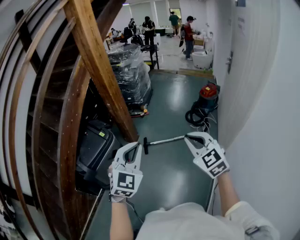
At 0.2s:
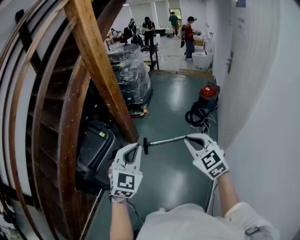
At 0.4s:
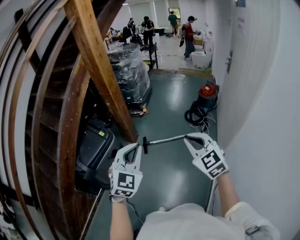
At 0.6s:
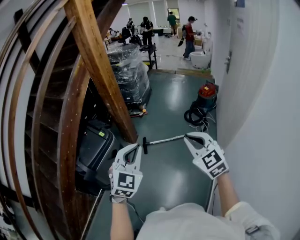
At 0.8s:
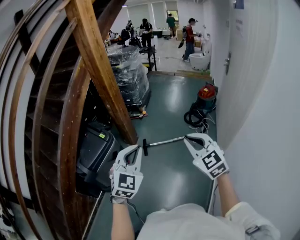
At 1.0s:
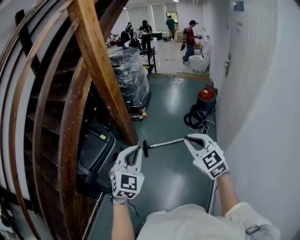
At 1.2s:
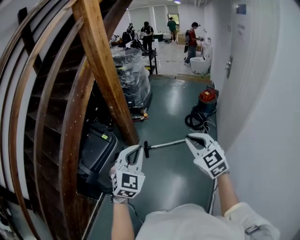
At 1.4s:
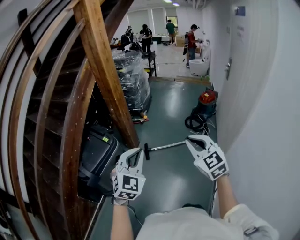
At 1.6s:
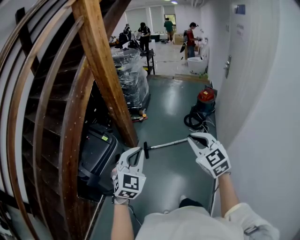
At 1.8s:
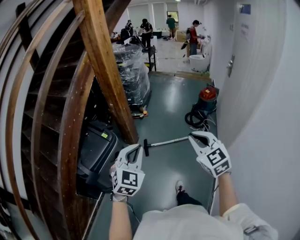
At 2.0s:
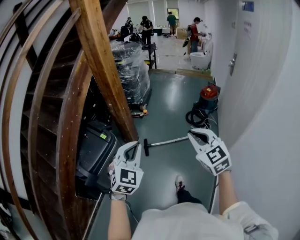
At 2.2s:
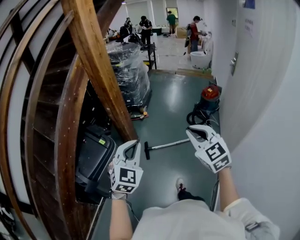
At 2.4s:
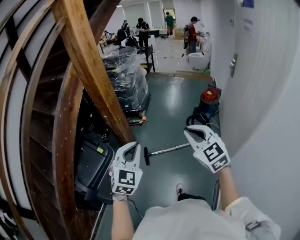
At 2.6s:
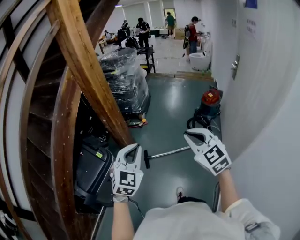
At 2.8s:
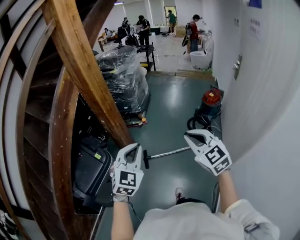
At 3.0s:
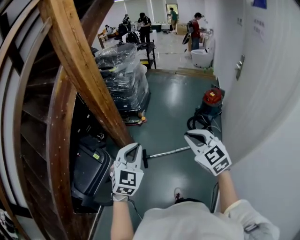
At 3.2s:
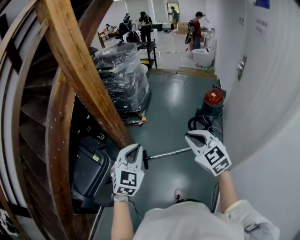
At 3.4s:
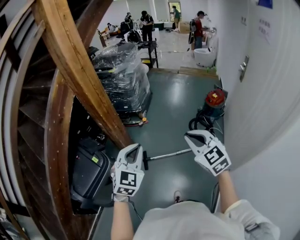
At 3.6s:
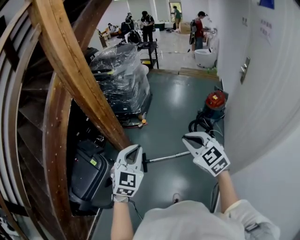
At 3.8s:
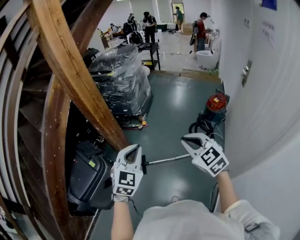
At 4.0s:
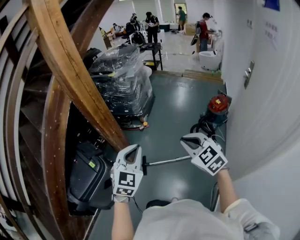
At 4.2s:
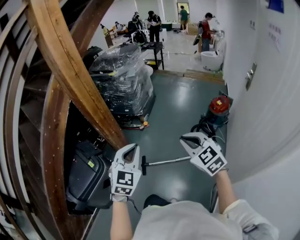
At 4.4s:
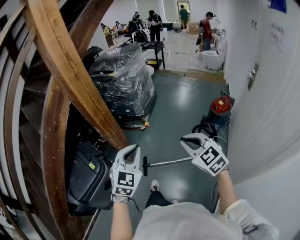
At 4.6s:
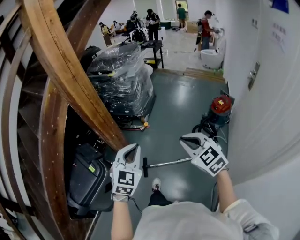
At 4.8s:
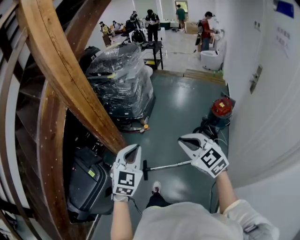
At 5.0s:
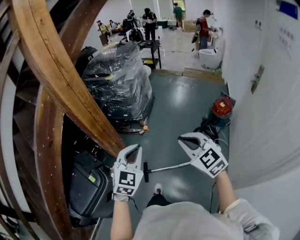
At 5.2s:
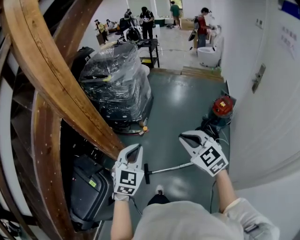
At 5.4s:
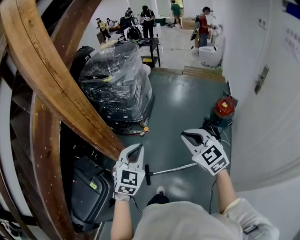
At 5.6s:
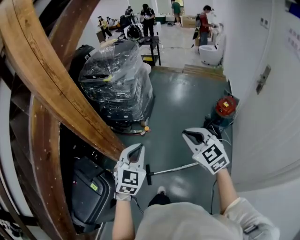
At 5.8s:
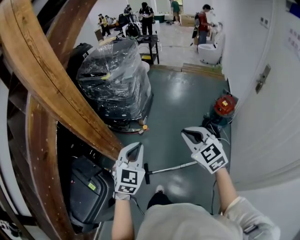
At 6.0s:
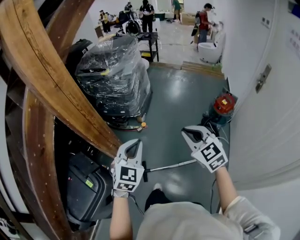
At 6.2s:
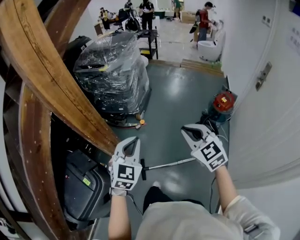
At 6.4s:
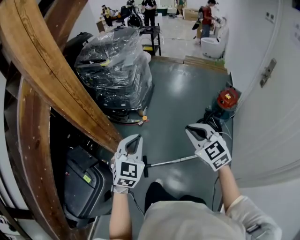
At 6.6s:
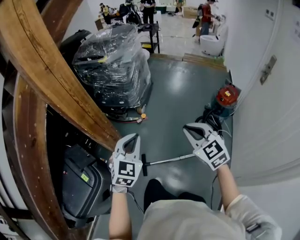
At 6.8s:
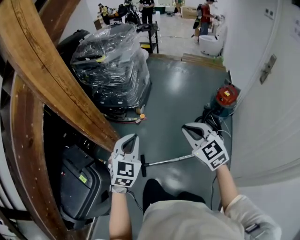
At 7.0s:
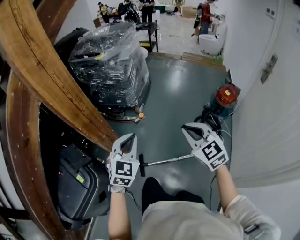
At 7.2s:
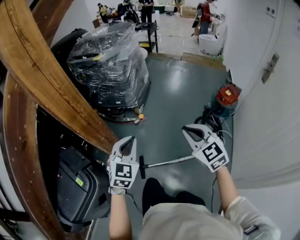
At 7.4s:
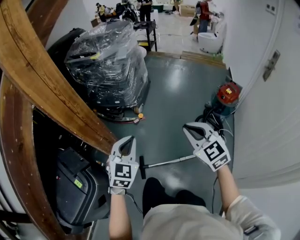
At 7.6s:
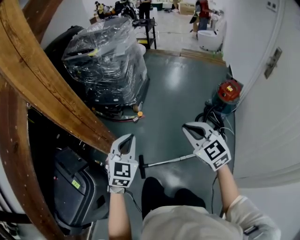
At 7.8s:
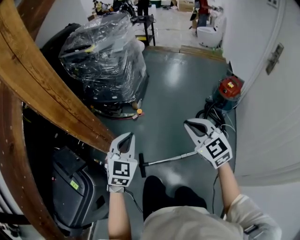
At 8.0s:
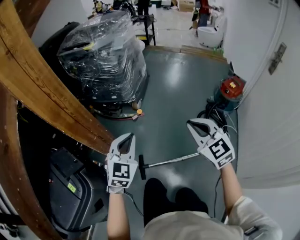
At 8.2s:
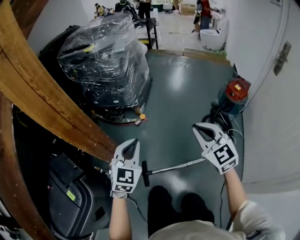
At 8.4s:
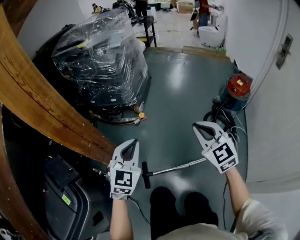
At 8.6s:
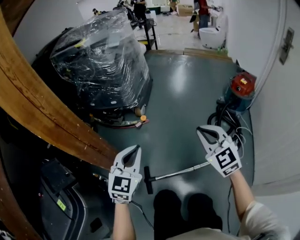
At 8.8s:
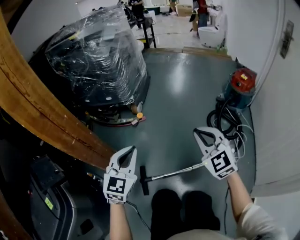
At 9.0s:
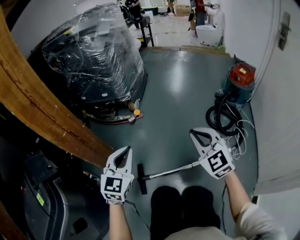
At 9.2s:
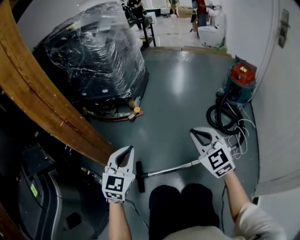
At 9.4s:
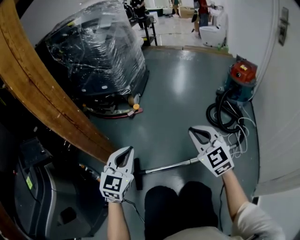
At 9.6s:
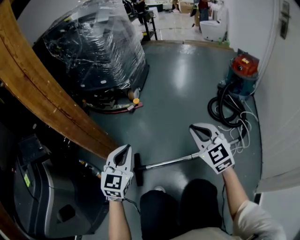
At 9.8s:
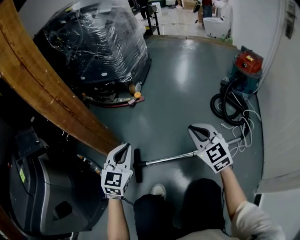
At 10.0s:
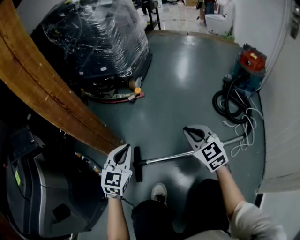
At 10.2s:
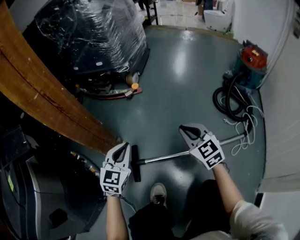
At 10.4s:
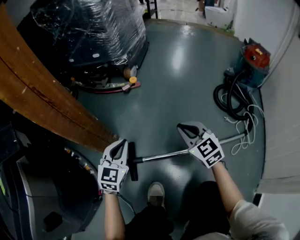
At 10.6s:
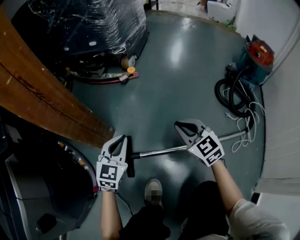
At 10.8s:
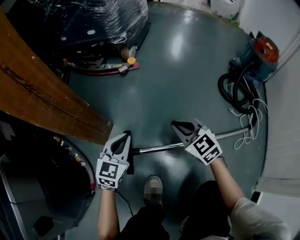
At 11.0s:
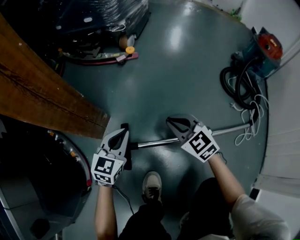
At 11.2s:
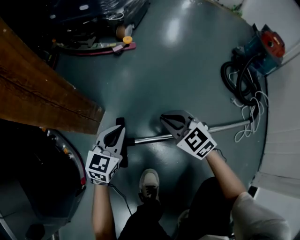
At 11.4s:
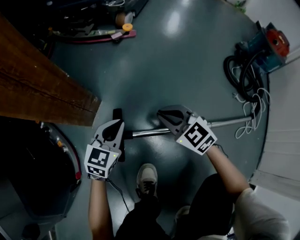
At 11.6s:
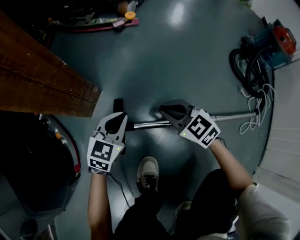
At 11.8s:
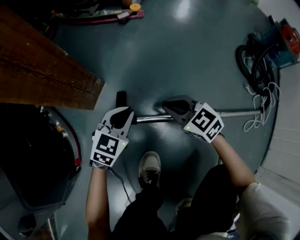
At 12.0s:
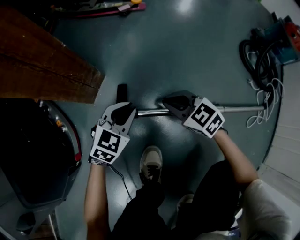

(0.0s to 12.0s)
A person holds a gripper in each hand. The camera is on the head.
0.0s - 1.6s: Both grippers move to the left, approximately 5 cm.
1.6s - 3.0s: The grippers both shift forward by about 25 cm.
3.0s - 4.4s: The grippers both shift forward and to the right by about 15 cm.
4.4s - 6.0s: Both grippers move forward, some 20 cm.
6.0s - 7.6s: The two grippers go some 15 cm downward.
7.6s - 9.0s: Both grippers move downward, some 30 cm.
9.0s - 10.4s: The grippers both shift downward by roughly 25 cm.
10.4s - 12.0s: The right gripper moves downward and to the left, some 25 cm, and turns by about 30 degrees, while the left gripper moves downward, roughly 20 cm, and turns by some 20 degrees.

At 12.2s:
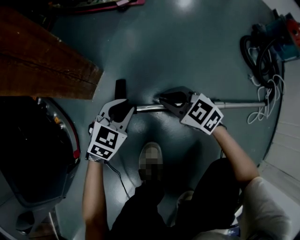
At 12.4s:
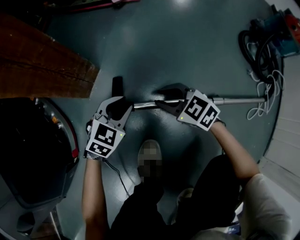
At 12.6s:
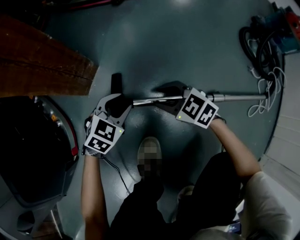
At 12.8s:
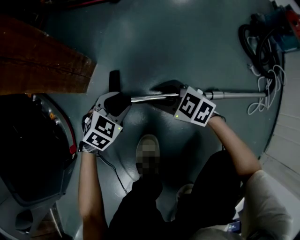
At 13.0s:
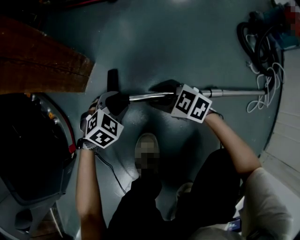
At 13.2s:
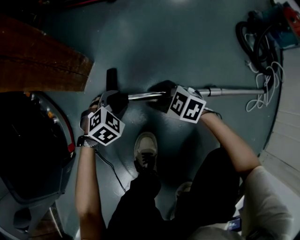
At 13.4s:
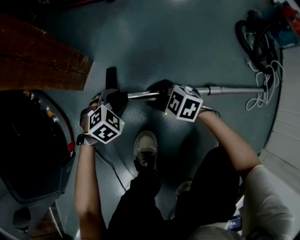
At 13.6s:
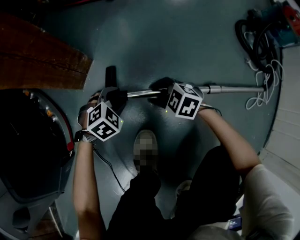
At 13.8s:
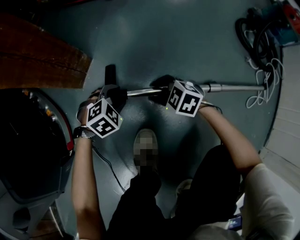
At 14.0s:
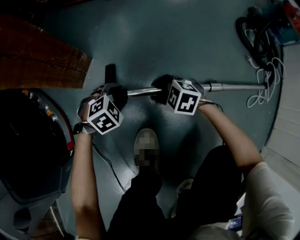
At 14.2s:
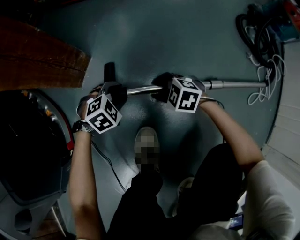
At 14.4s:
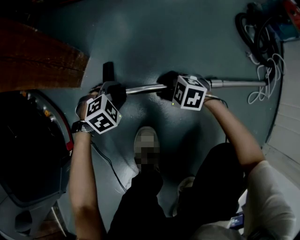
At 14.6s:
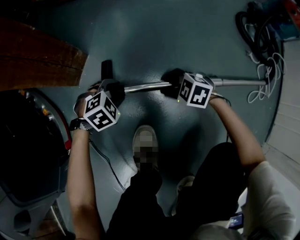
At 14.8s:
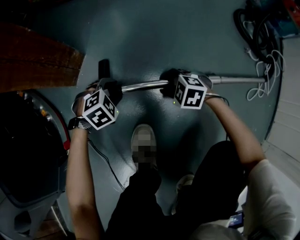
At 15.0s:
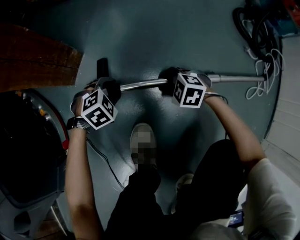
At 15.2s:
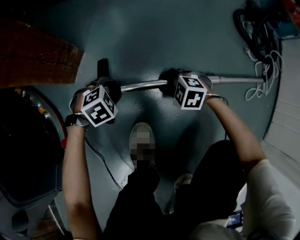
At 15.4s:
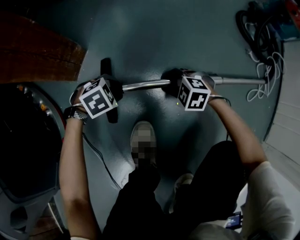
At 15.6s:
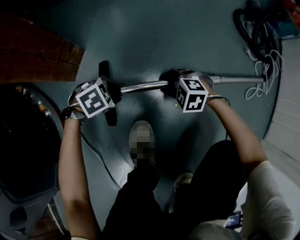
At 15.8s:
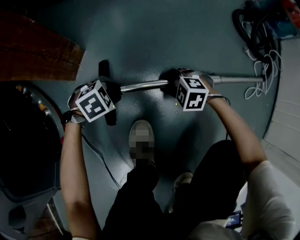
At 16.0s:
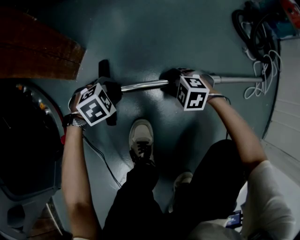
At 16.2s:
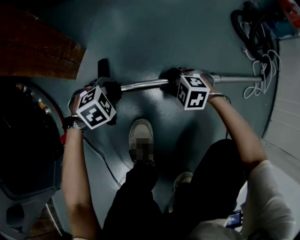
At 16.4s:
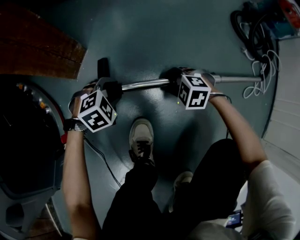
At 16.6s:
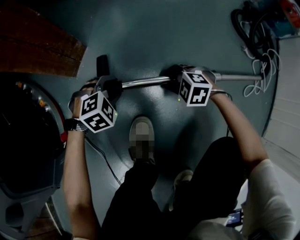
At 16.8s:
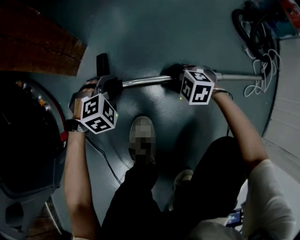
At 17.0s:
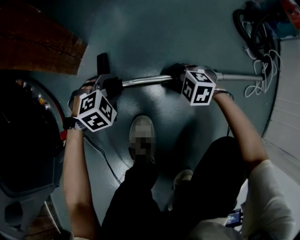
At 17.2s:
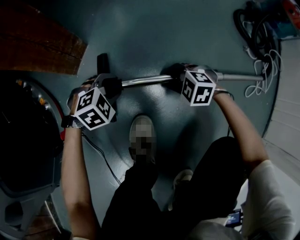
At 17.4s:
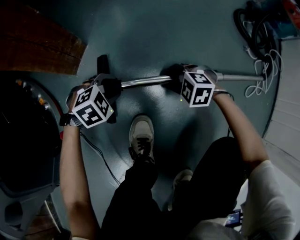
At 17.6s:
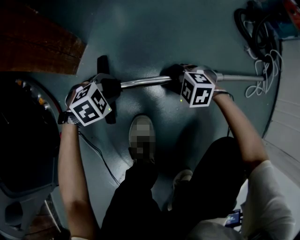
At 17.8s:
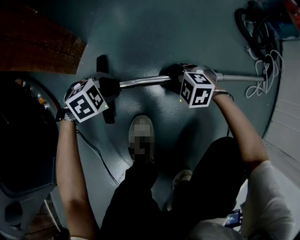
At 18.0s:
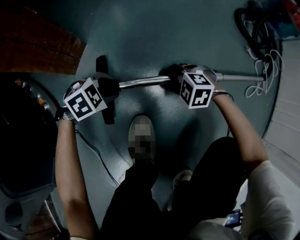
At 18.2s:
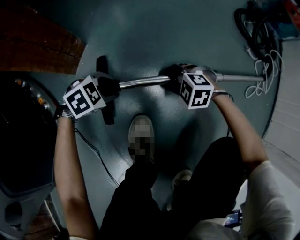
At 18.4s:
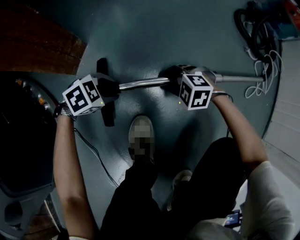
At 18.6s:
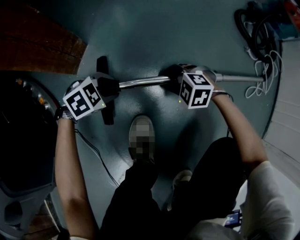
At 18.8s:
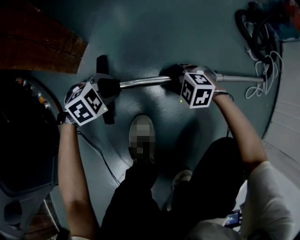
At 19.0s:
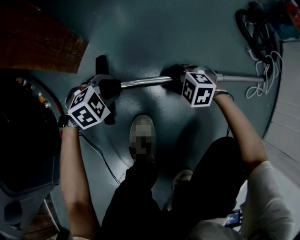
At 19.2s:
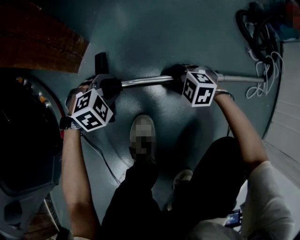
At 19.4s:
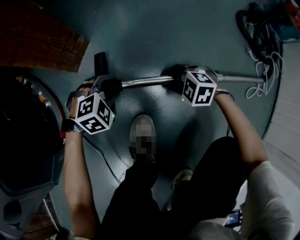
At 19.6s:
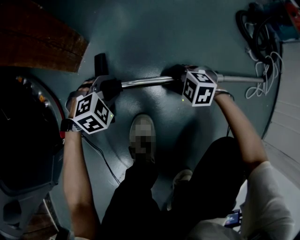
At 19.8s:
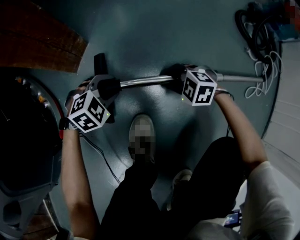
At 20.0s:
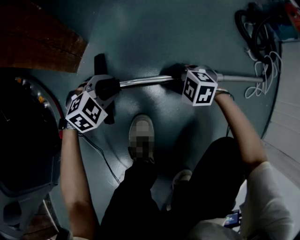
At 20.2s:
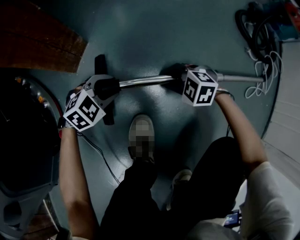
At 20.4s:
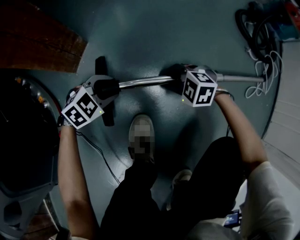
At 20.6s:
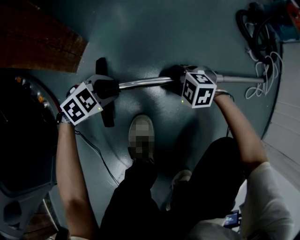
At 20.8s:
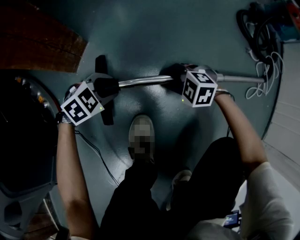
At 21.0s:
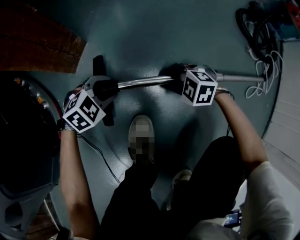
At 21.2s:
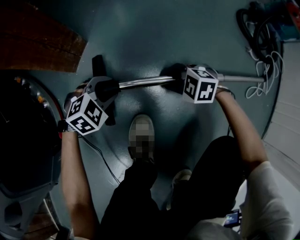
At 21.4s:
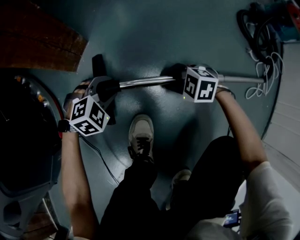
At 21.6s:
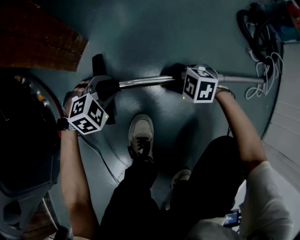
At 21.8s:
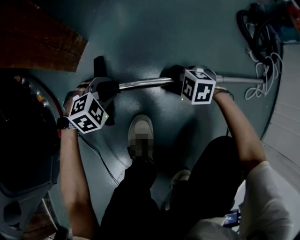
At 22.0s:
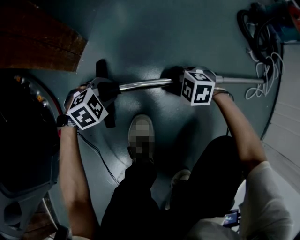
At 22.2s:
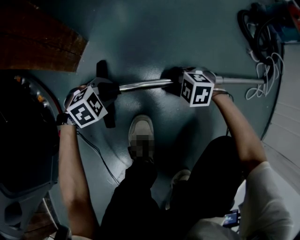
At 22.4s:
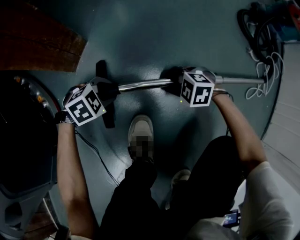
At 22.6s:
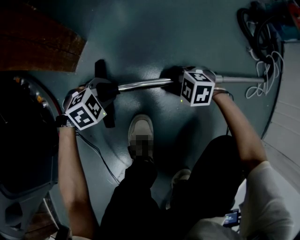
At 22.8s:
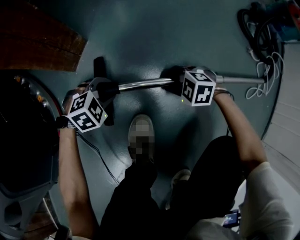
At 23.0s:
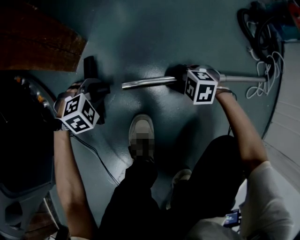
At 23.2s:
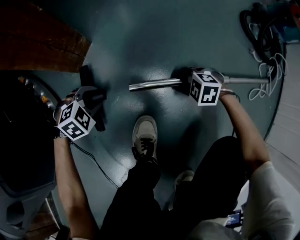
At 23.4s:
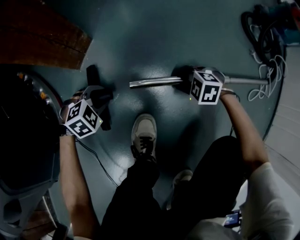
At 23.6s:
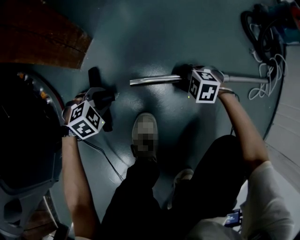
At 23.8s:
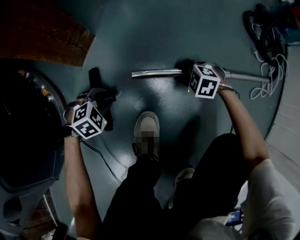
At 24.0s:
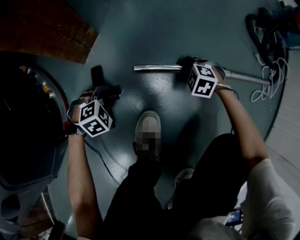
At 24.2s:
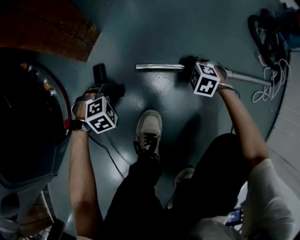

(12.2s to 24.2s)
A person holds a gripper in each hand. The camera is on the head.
12.2s - 13.8s: The grippers both shift downward by some 10 cm. The left gripper turns by some 30 degrees, and opens its fingers. The right gripper opens its fingers.
13.8s - 15.2s: The right gripper ends up about 5 cm from where it was.
15.2s - 16.6s: There are only small adjustments of the grippers.
16.6s - 18.2s: The left gripper rotates roughly 20 degrees.
19.8s - 22.6s: There are only small adjustments of the grippers.
22.6s - 24.2s: The left gripper ends up some 5 cm from where it was; the right gripper changes place by roughly 5 cm.
